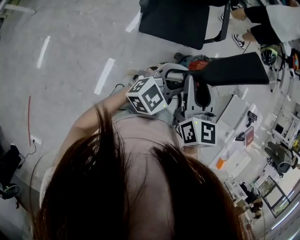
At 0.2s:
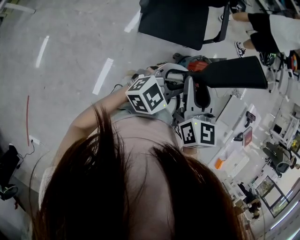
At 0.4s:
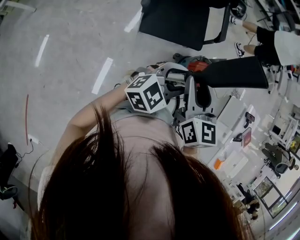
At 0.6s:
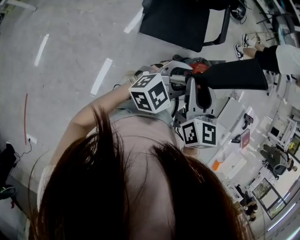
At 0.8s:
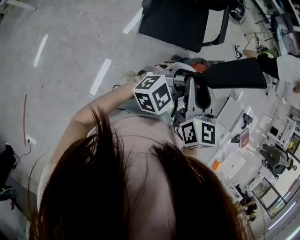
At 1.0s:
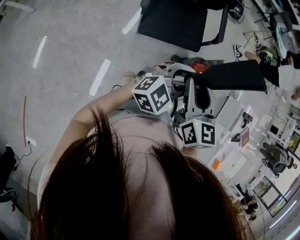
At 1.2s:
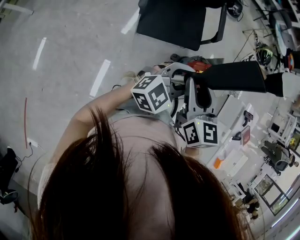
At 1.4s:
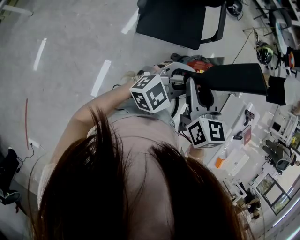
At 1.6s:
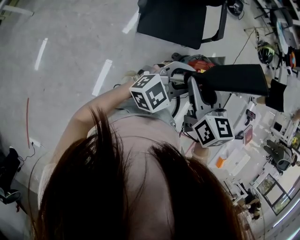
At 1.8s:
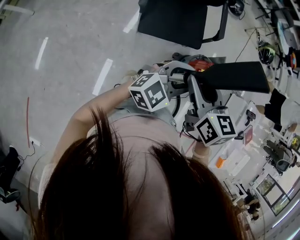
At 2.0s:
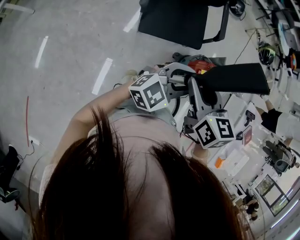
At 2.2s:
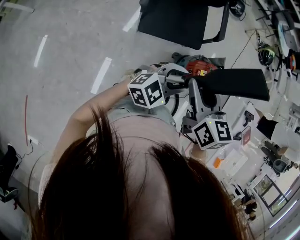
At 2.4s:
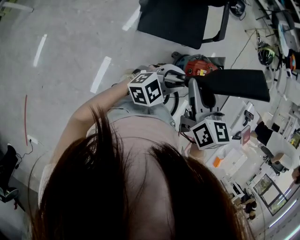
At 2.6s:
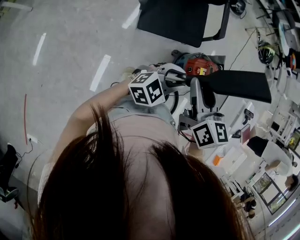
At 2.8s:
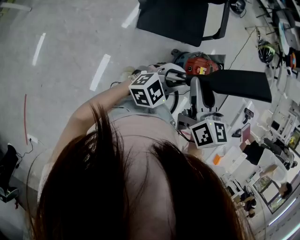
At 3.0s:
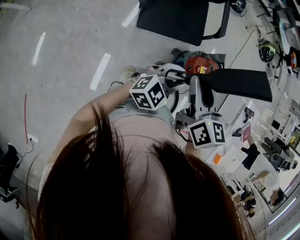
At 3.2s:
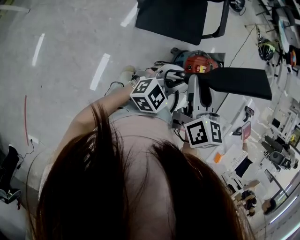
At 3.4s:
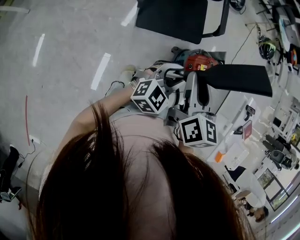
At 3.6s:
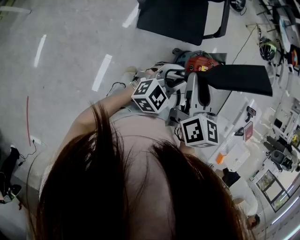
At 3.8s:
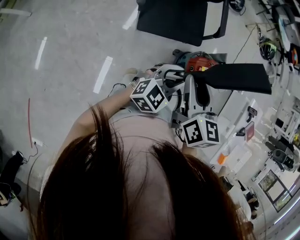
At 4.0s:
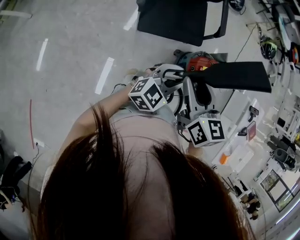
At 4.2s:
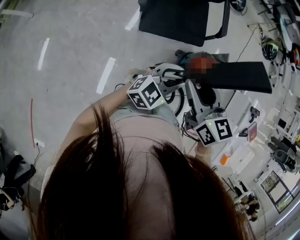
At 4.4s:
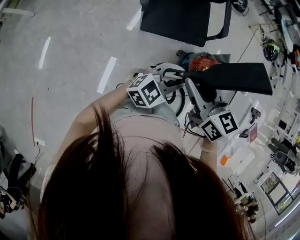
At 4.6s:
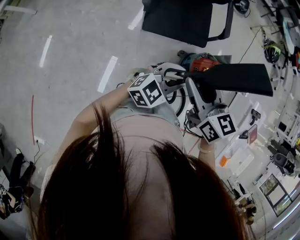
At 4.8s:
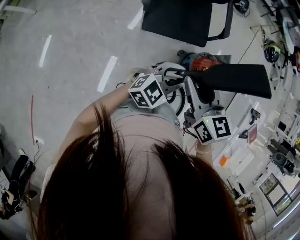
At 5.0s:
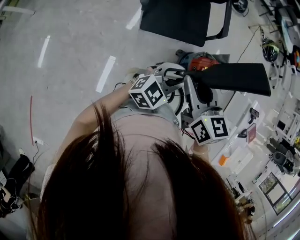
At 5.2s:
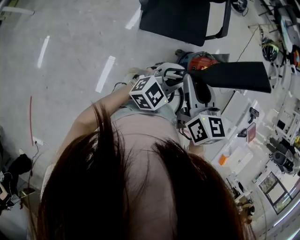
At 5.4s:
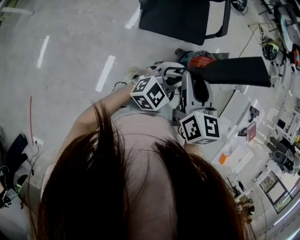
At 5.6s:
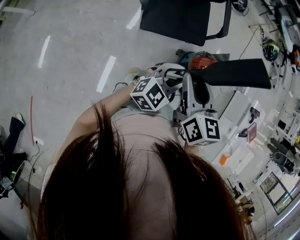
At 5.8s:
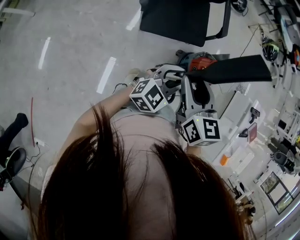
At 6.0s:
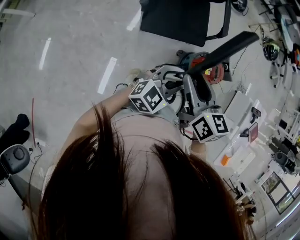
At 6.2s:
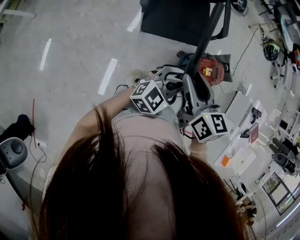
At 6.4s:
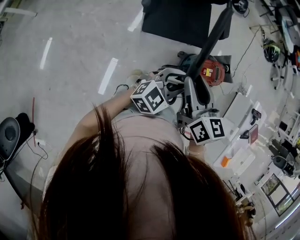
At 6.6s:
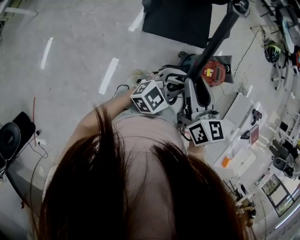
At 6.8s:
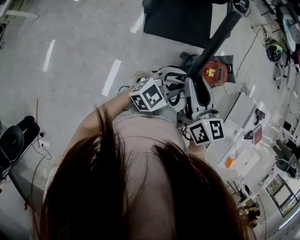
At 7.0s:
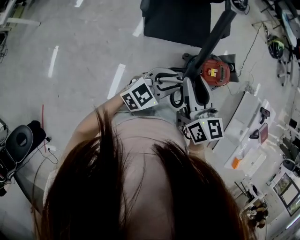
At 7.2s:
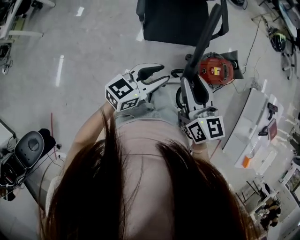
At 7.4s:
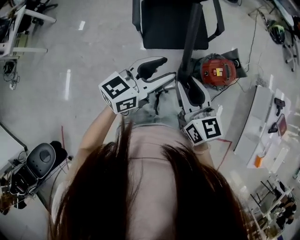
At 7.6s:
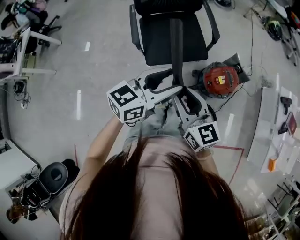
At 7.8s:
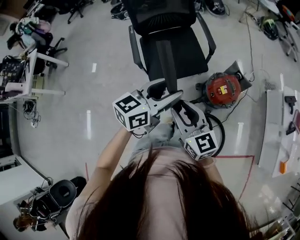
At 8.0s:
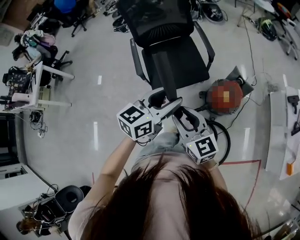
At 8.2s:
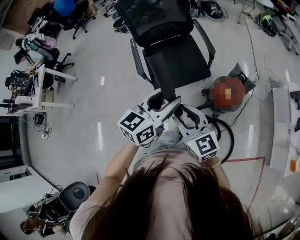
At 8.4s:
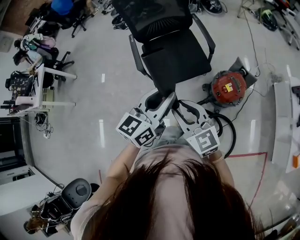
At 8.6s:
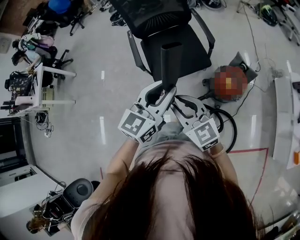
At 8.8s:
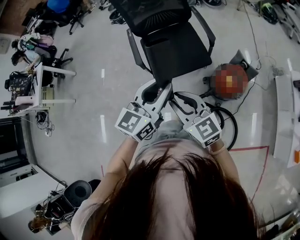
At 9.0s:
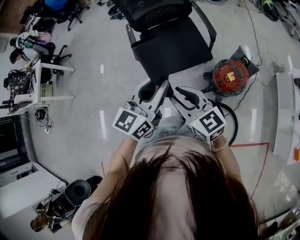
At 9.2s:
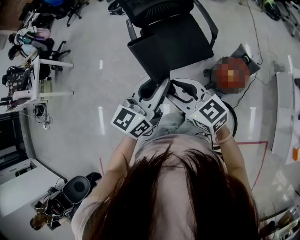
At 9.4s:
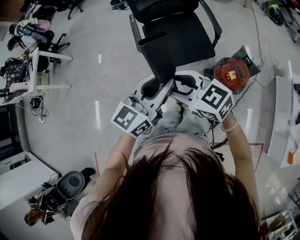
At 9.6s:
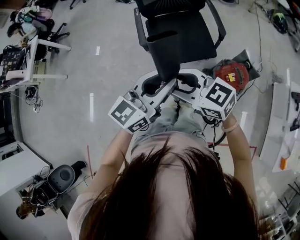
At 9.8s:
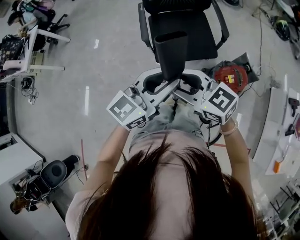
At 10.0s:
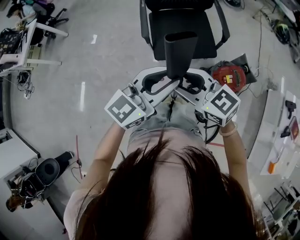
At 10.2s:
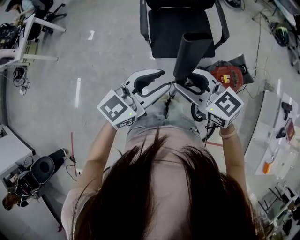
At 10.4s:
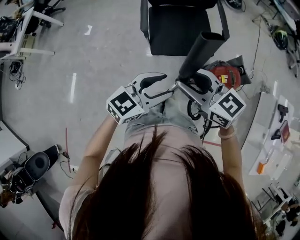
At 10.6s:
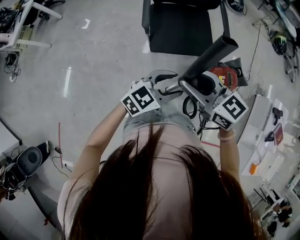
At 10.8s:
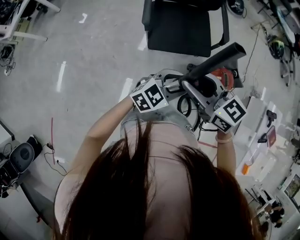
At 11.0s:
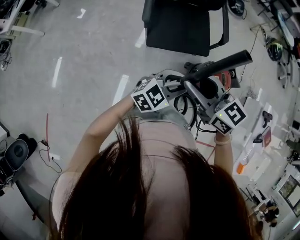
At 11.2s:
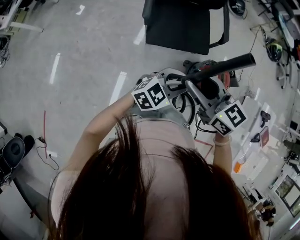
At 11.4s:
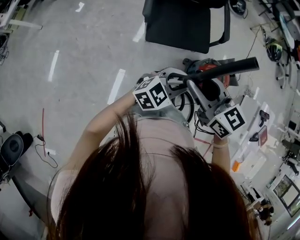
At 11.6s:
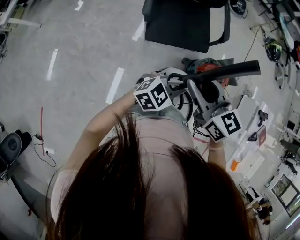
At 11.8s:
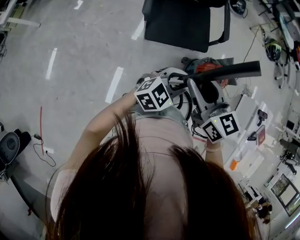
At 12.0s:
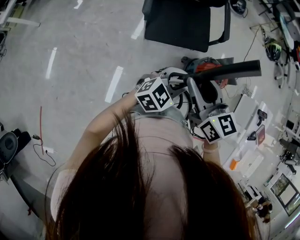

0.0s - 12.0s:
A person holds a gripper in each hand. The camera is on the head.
0.0s - 1.6s: The grippers make only small movements.
1.6s - 3.0s: The left gripper goes approximately 5 cm downward.
3.0s - 4.4s: The right gripper turns by approximately 30 degrees.
6.0s - 7.6s: The left gripper is displaced upward by roughly 15 cm, and turns by some 20 degrees.
7.6s - 9.0s: The left gripper changes its angle by roughly 20 degrees, and closes.
9.0s - 10.4s: The left gripper goes about 10 cm downward, backward and to the left, turns by about 20 degrees, and opens its fingers. Meanwhile the right gripper changes its angle by about 20 degrees.
10.4s - 12.0s: The left gripper is displaced downward by about 5 cm; the right gripper changes its angle by roughly 20 degrees.

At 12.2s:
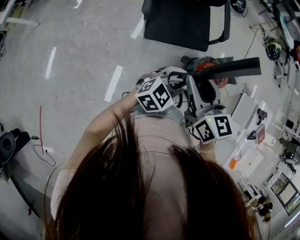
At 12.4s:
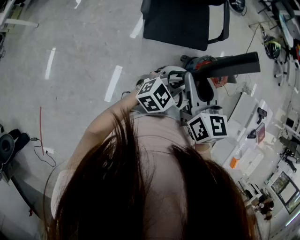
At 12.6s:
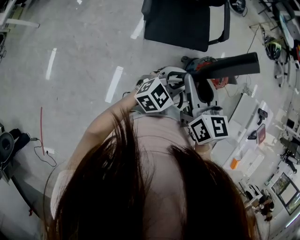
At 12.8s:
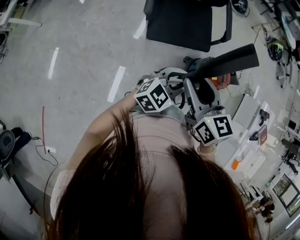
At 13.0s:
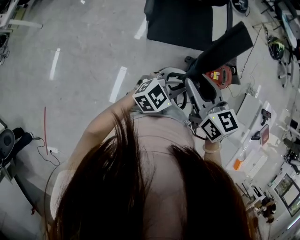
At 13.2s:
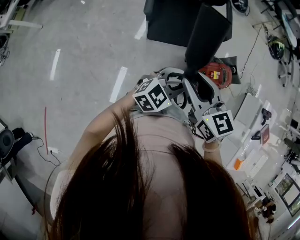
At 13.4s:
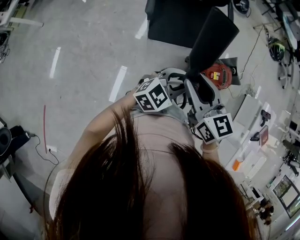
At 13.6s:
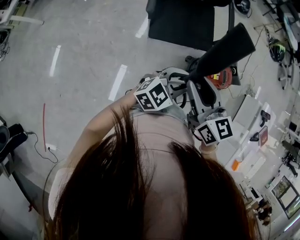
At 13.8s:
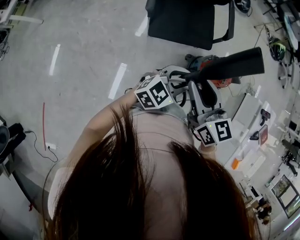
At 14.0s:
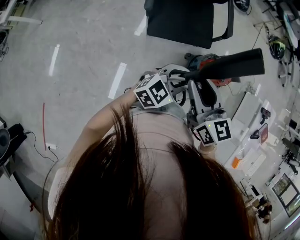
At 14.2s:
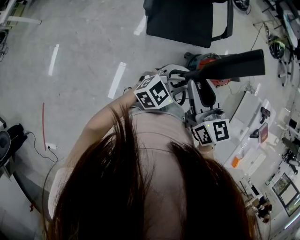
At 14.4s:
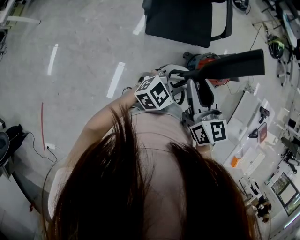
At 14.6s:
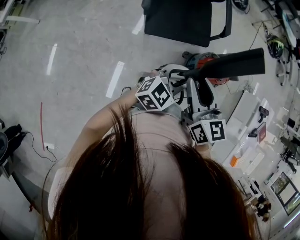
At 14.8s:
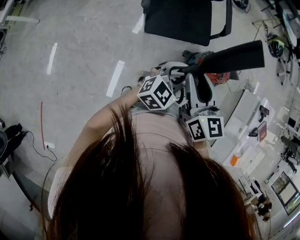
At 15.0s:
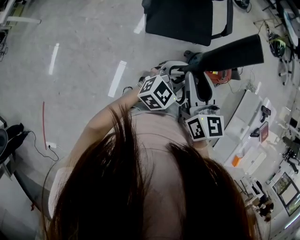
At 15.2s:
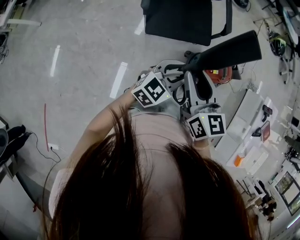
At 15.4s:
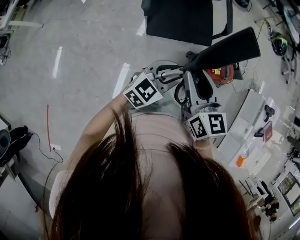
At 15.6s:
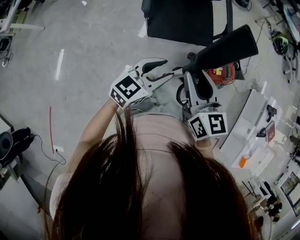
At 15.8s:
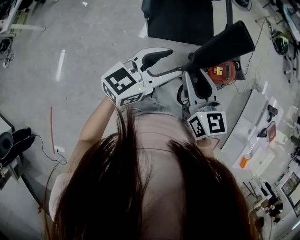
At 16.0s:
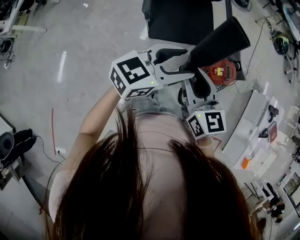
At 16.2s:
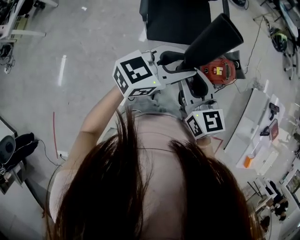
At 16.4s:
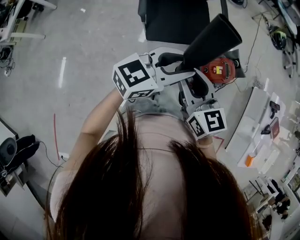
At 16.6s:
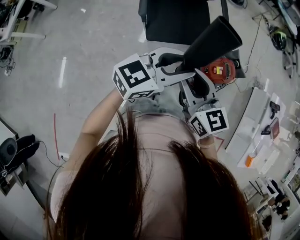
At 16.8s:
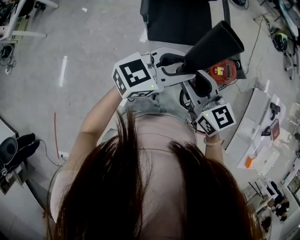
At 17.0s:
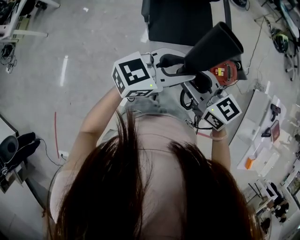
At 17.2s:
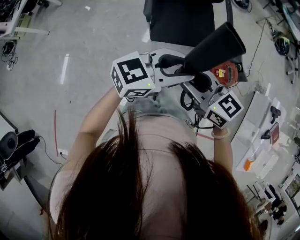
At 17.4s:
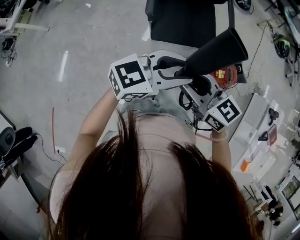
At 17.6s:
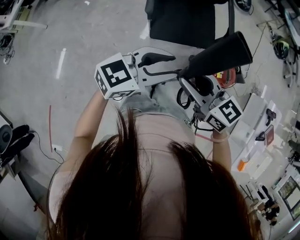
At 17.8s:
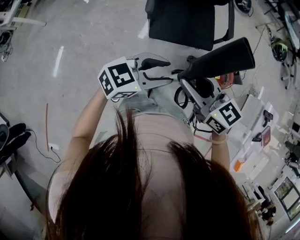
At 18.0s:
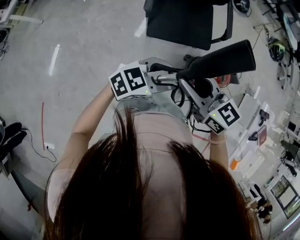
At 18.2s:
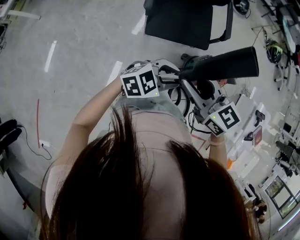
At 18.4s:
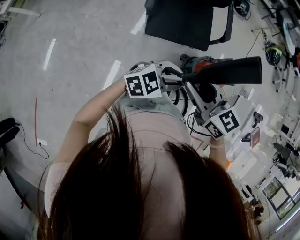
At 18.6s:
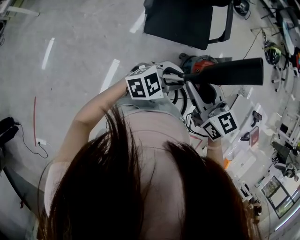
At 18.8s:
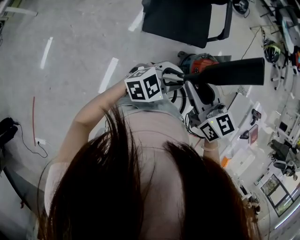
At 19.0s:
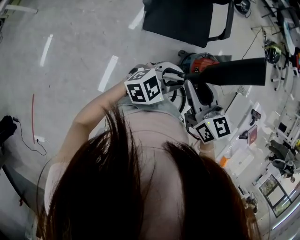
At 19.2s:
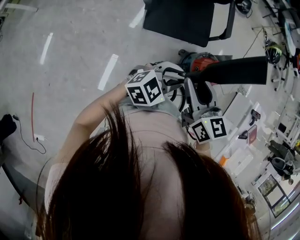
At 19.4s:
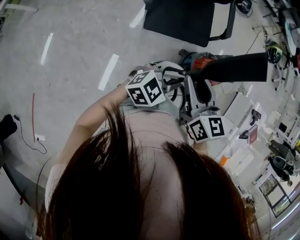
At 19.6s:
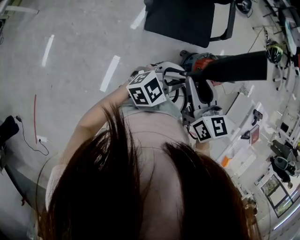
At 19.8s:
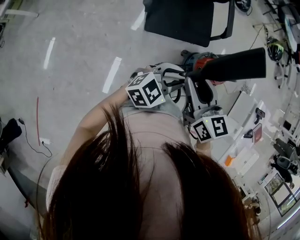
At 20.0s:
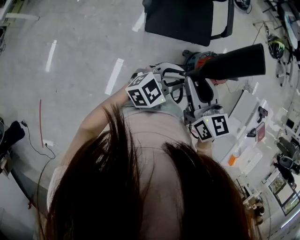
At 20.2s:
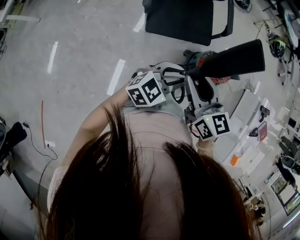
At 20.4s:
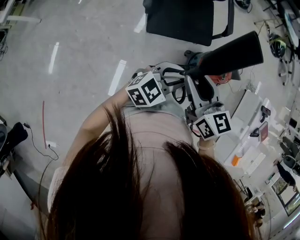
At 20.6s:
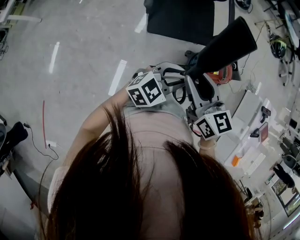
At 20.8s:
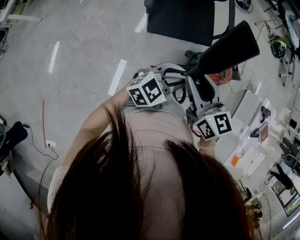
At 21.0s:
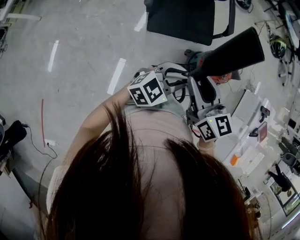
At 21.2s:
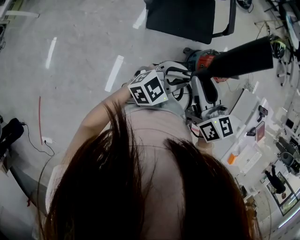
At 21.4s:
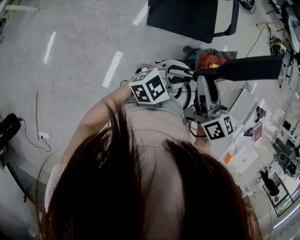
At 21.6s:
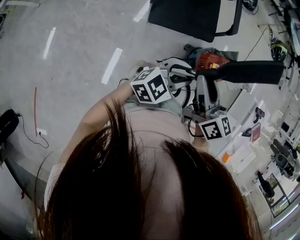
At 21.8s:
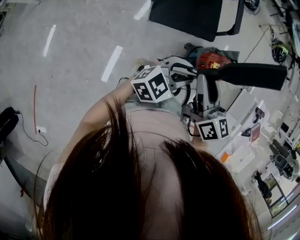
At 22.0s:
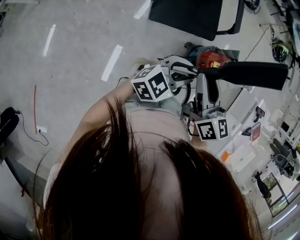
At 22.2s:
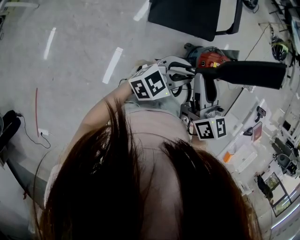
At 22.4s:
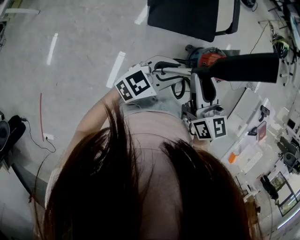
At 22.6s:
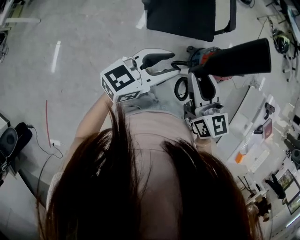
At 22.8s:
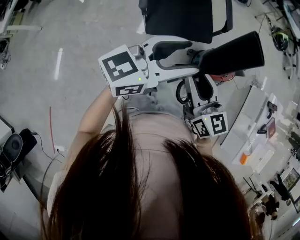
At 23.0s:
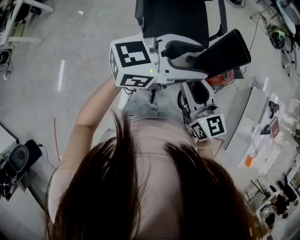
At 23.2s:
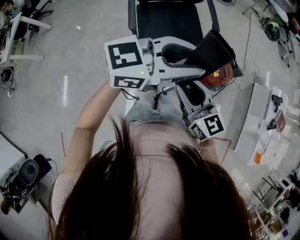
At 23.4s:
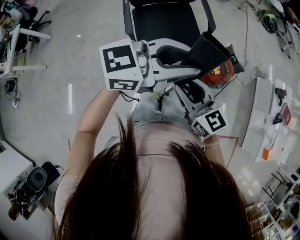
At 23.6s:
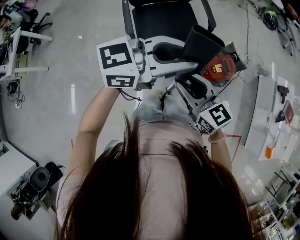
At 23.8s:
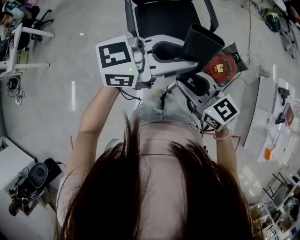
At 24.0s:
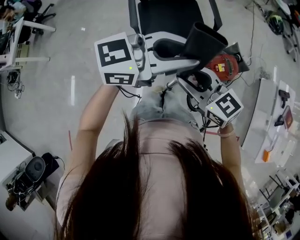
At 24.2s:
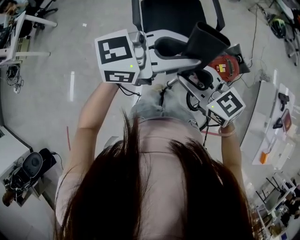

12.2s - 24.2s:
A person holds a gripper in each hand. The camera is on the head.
12.2s - 15.2s: The grippers stay close to where they were, moving slightly.
15.2s - 16.6s: The left gripper goes some 15 cm upward.
16.6s - 18.2s: The left gripper heads downward, covering roughly 15 cm, and rotates some 20 degrees, while the right gripper turns by approximately 20 degrees.
18.2s - 19.8s: The right gripper rotates approximately 20 degrees.
19.8s - 21.2s: The grippers move only a little.
21.2s - 22.6s: The left gripper shifts approximately 10 cm to the left and upward, and turns by approximately 20 degrees.
22.6s - 24.2s: The left gripper heads upward, covering some 15 cm, and changes its angle by approximately 30 degrees, while the right gripper turns by roughly 30 degrees.
